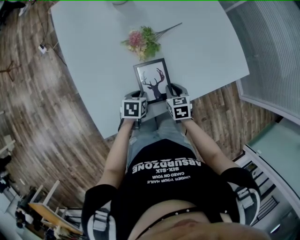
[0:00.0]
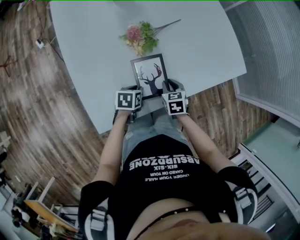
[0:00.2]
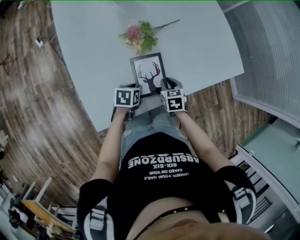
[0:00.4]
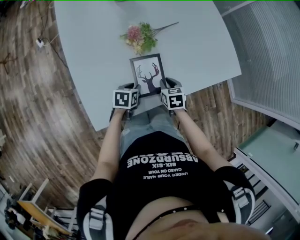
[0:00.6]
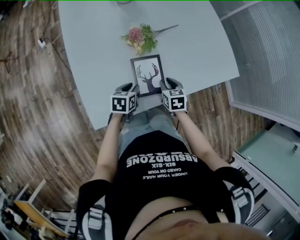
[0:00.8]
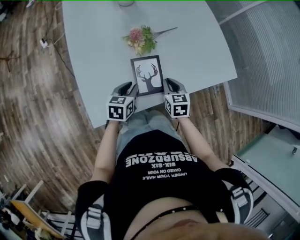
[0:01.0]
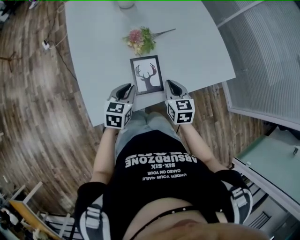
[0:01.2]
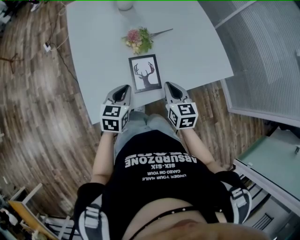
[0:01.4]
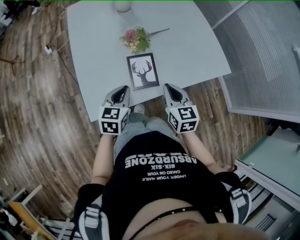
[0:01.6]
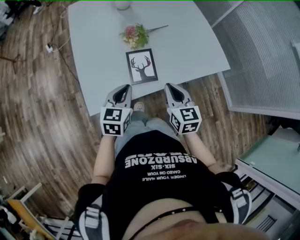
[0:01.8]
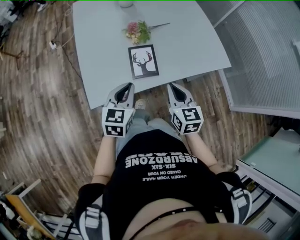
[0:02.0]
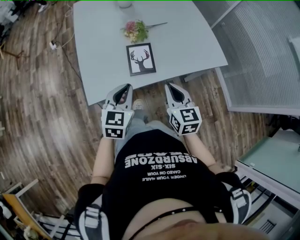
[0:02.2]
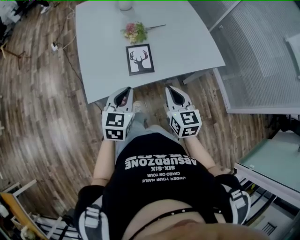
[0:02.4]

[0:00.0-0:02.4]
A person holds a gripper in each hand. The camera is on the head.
0:00.0 to 0:01.2: Both grippers travel together upward, approximately 15 cm. The left gripper changes its angle by approximately 30 degrees.
0:01.2 to 0:02.4: The two grippers go about 20 cm backward and upward.

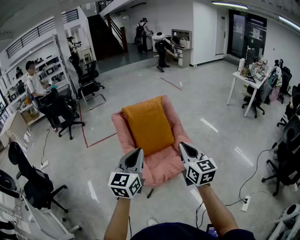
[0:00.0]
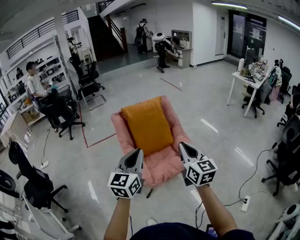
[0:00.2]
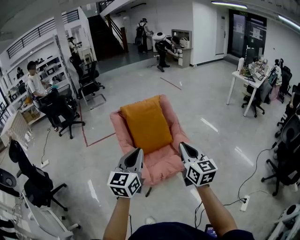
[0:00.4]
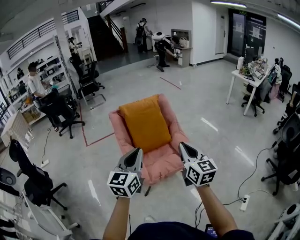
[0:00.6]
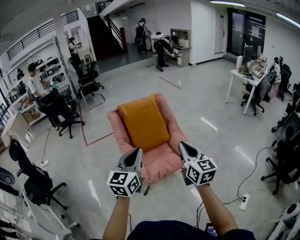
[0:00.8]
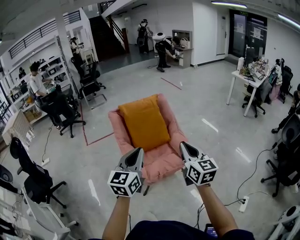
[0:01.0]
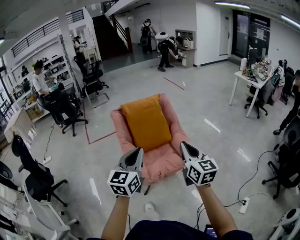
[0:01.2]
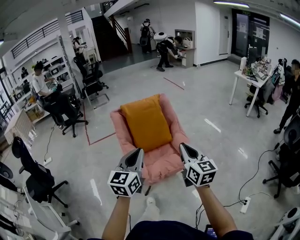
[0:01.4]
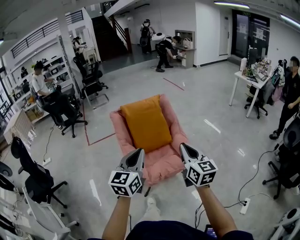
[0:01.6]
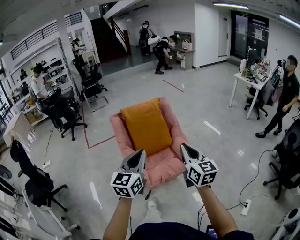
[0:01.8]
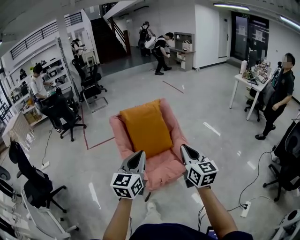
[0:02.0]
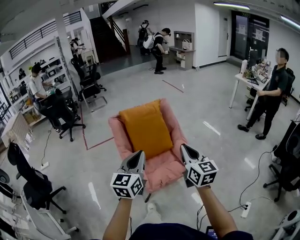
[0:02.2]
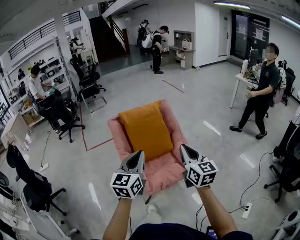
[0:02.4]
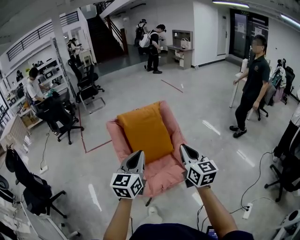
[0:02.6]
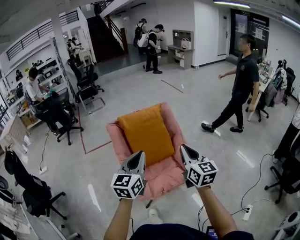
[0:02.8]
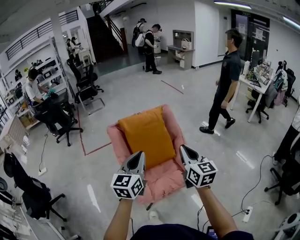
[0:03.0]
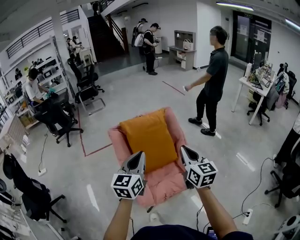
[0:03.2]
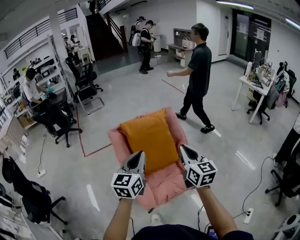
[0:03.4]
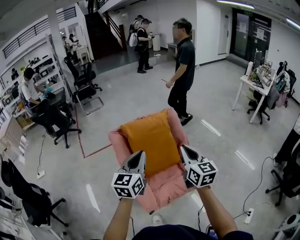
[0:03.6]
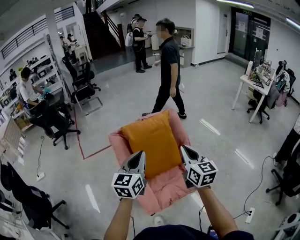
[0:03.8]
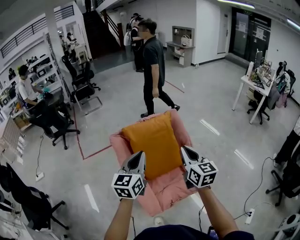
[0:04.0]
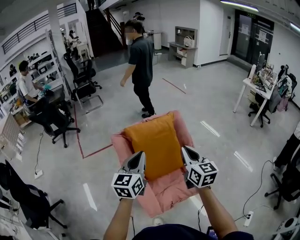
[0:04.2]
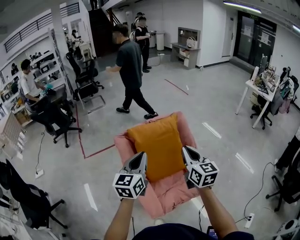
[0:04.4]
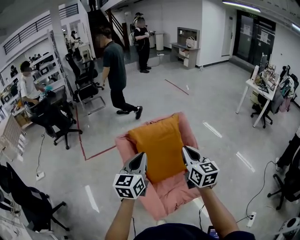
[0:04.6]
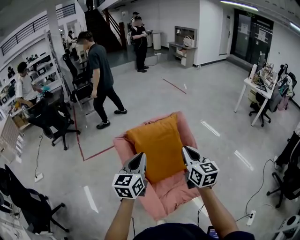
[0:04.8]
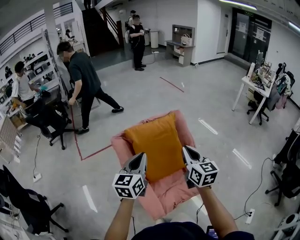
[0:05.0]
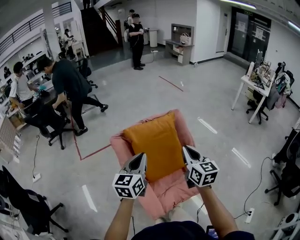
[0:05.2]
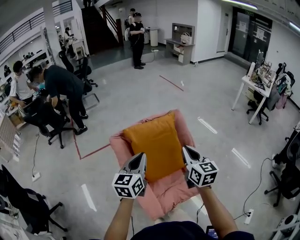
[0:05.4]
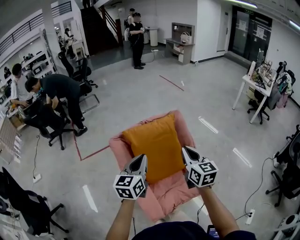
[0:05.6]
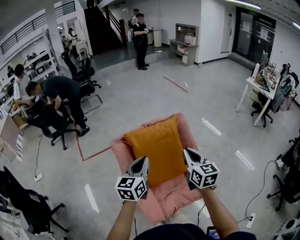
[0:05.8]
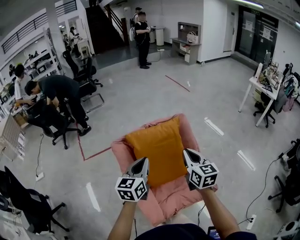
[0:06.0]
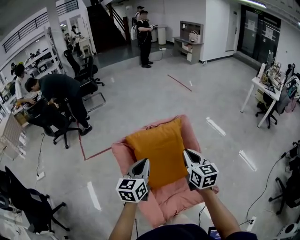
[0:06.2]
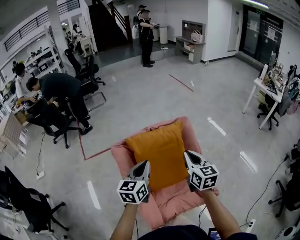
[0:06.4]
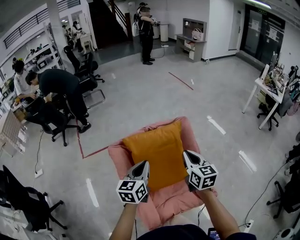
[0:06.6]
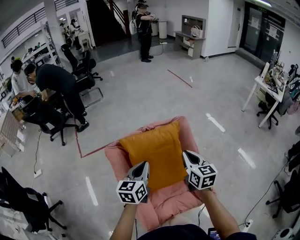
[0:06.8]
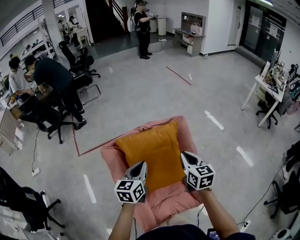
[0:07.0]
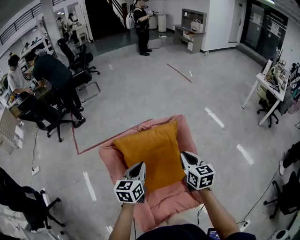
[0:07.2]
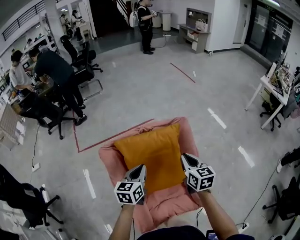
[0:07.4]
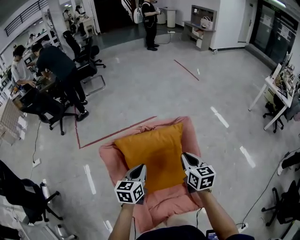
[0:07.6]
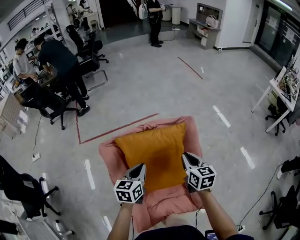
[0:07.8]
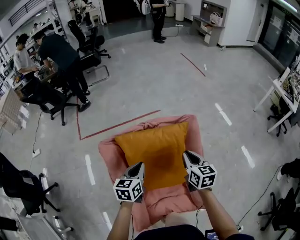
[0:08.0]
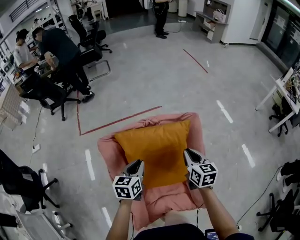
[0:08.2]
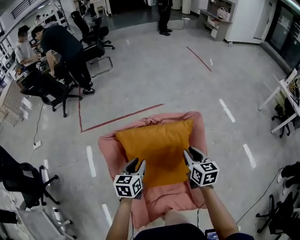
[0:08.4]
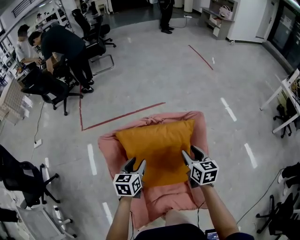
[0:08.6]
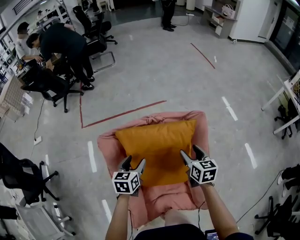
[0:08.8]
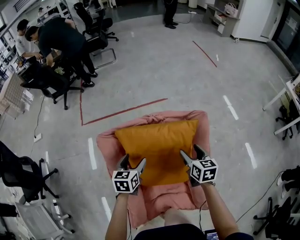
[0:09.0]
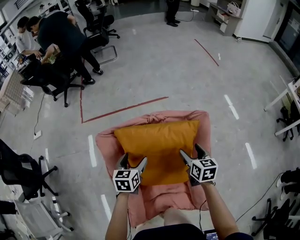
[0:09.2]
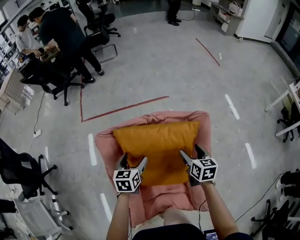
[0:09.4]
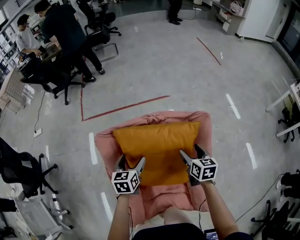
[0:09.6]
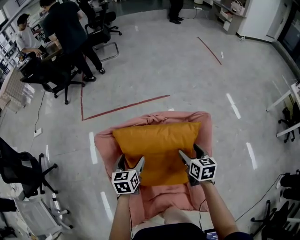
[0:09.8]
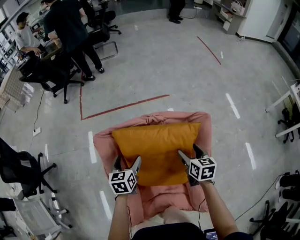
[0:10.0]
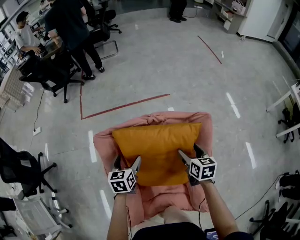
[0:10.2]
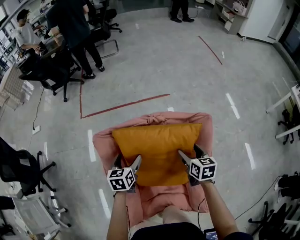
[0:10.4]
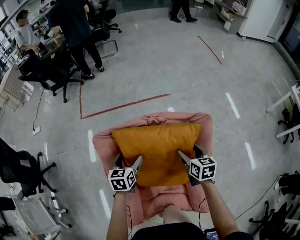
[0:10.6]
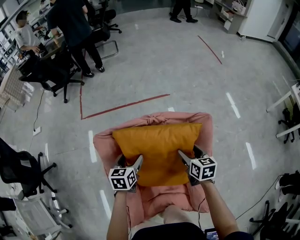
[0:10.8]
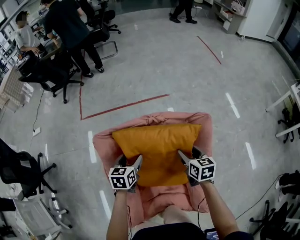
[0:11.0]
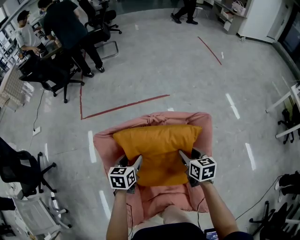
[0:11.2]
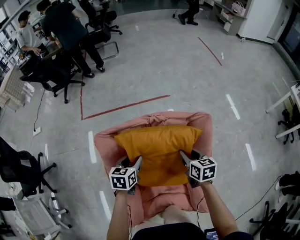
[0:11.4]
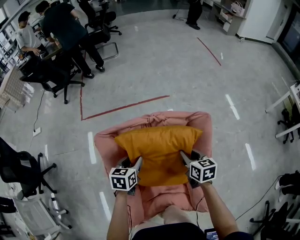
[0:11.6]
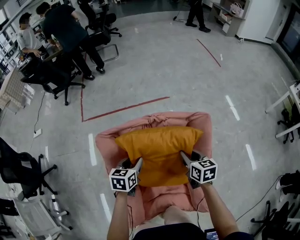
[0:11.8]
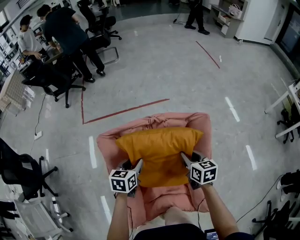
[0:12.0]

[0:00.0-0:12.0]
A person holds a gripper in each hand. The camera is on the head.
0:00.0 to 0:01.6: Both grippers move to the right, approximately 5 cm.
0:01.6 to 0:03.0: The grippers both shift forward by about 20 cm.
0:03.0 to 0:04.4: Both grippers move forward and to the left, about 20 cm.
0:04.4 to 0:06.0: The left gripper shifts approximately 10 cm forward and downward, while the right gripper moves forward, roughly 10 cm.
0:06.0 to 0:07.6: The right gripper shifts about 20 cm forward and downward, while the left gripper shifts some 15 cm downward and forward.
0:07.6 to 0:09.0: The right gripper travels downward and forward by approximately 15 cm, and opens its fingers. Meanwhile the left gripper goes about 15 cm downward, forward and to the left, and opens its fingers.
0:09.0 to 0:10.4: The right gripper changes place by approximately 5 cm. The left gripper changes place by roughly 5 cm.
0:10.4 to 0:12.0: The right gripper closes its fingers; the left gripper closes up.

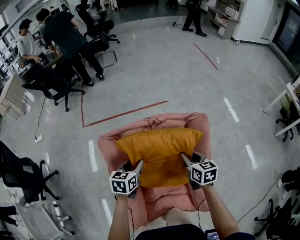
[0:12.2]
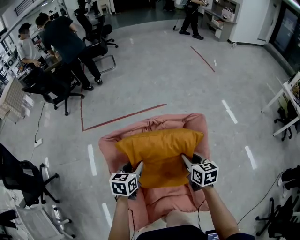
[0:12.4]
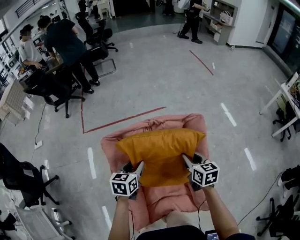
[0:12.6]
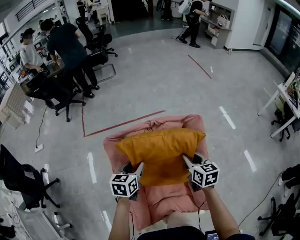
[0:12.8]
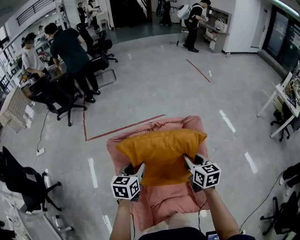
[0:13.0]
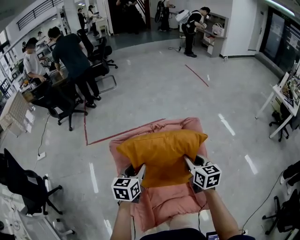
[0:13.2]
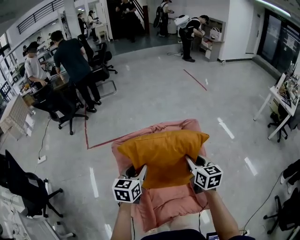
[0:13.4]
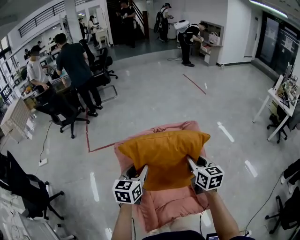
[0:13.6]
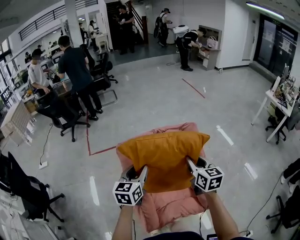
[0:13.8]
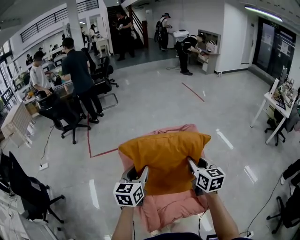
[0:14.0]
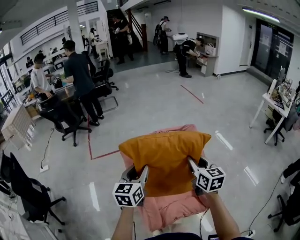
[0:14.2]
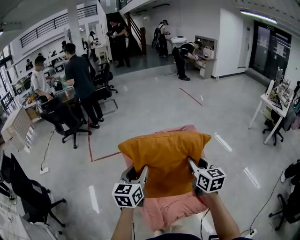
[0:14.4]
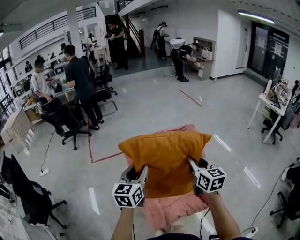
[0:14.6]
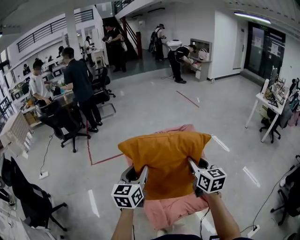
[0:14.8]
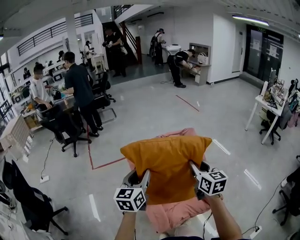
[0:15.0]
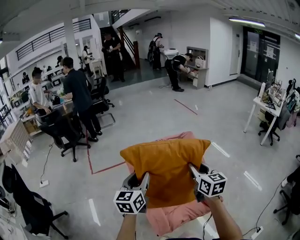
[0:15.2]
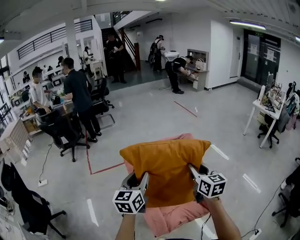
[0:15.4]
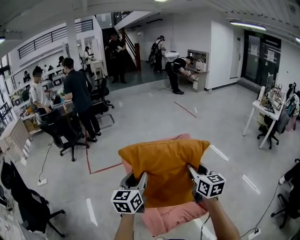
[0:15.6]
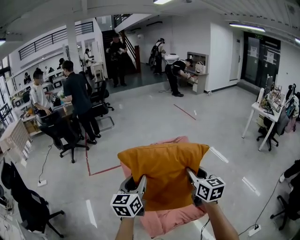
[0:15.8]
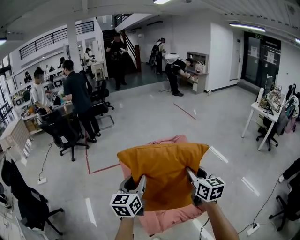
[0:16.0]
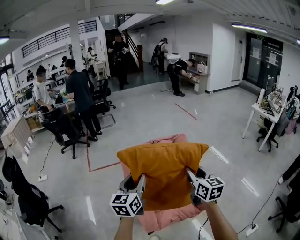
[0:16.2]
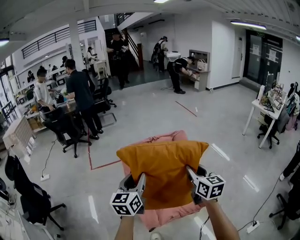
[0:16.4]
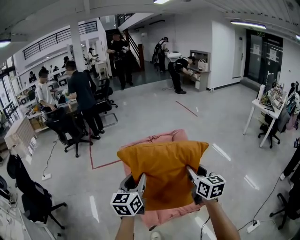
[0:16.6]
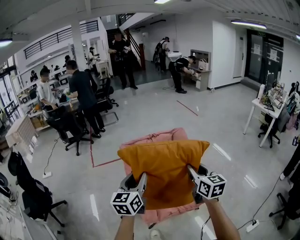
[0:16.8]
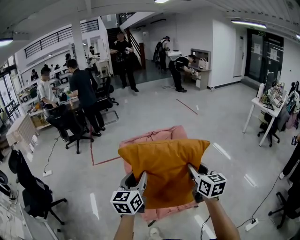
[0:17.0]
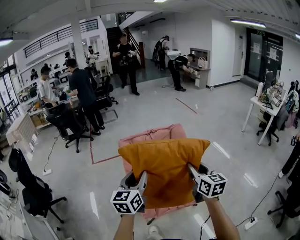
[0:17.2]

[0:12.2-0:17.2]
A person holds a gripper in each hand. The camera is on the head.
0:12.2 to 0:13.8: Both grippers travel together upward and backward, roughly 25 cm. The left gripper changes its angle by approximately 20 degrees, while the right gripper rotates approximately 20 degrees.
0:13.8 to 0:15.6: The two grippers go roughly 15 cm backward and upward.
0:15.6 to 0:17.2: The grippers both shift backward and to the right by about 15 cm.

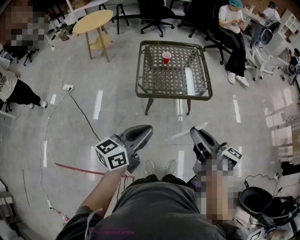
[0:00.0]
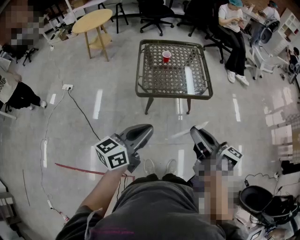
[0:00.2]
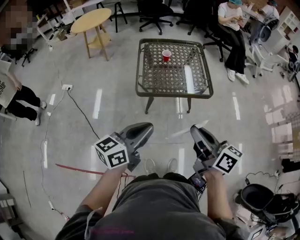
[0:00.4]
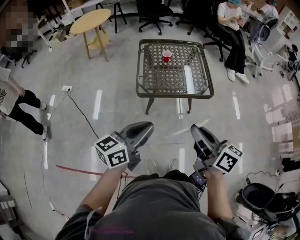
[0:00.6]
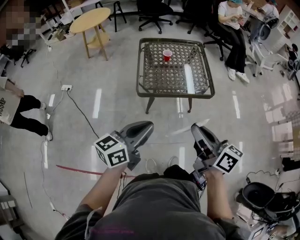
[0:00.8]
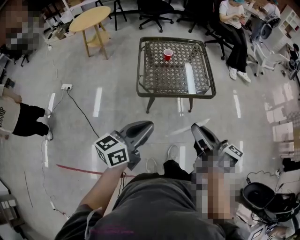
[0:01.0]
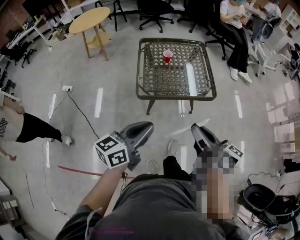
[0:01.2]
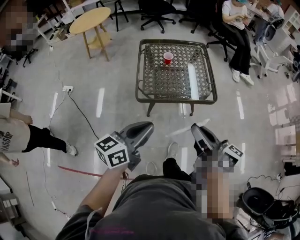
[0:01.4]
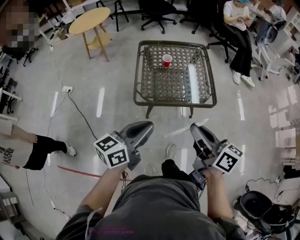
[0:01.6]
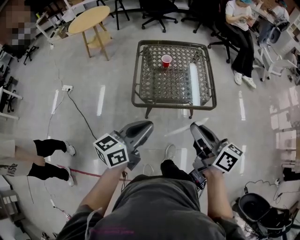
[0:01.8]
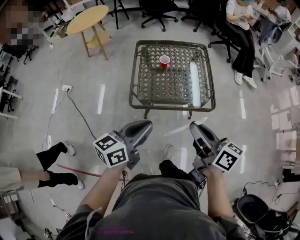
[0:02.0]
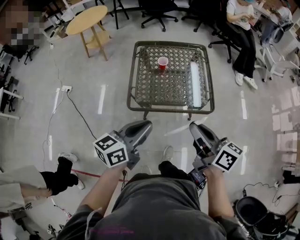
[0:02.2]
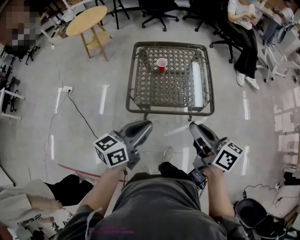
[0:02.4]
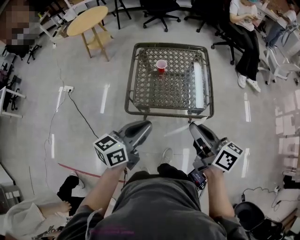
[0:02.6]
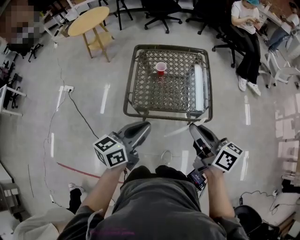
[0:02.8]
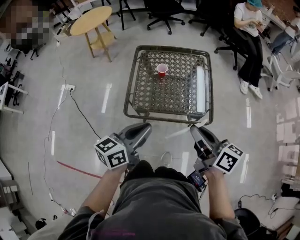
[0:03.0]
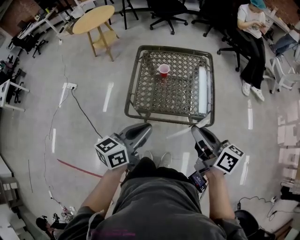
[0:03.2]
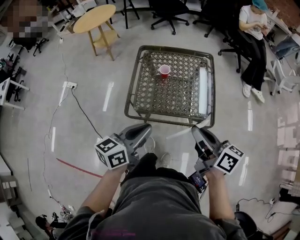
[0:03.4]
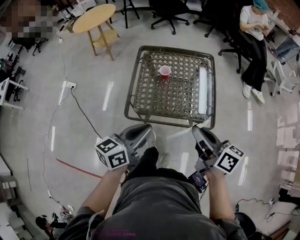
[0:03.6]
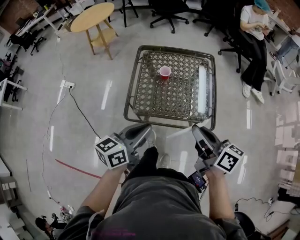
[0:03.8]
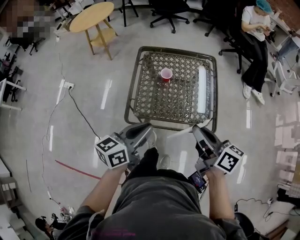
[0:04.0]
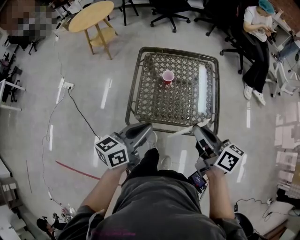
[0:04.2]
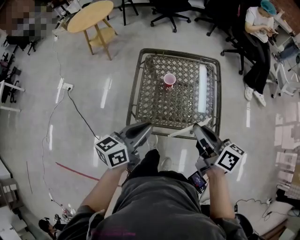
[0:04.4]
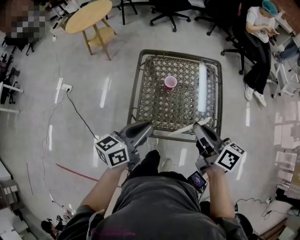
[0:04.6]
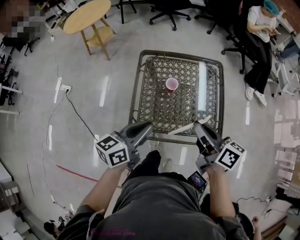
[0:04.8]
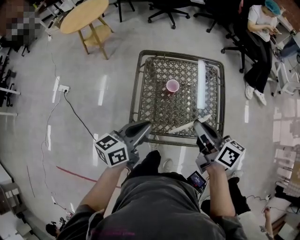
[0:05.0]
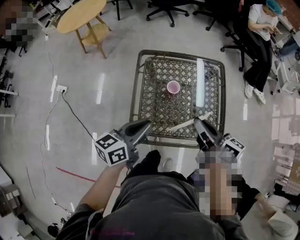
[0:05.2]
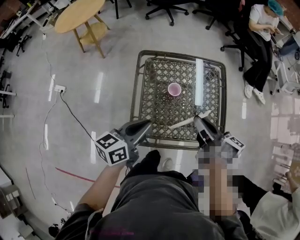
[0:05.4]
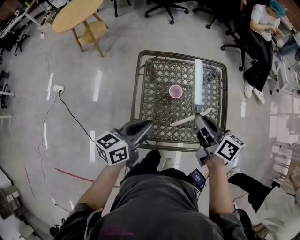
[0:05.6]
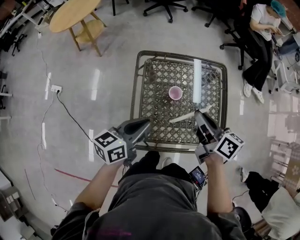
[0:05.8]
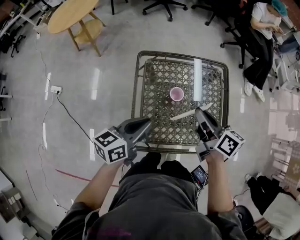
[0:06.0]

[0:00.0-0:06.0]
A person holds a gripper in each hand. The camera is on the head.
0:00.0 to 0:01.6: Both grippers travel together forward, roughly 10 cm.
0:01.6 to 0:03.0: Both grippers travel together forward and to the right, about 15 cm.
0:03.0 to 0:04.4: Both grippers travel together forward, about 10 cm.
0:04.4 to 0:06.0: The right gripper travels forward by approximately 20 cm, while the left gripper shifts approximately 20 cm forward and to the left.
